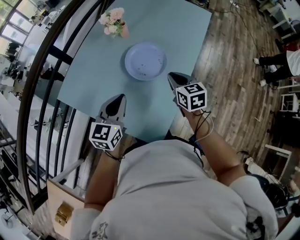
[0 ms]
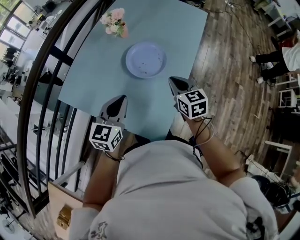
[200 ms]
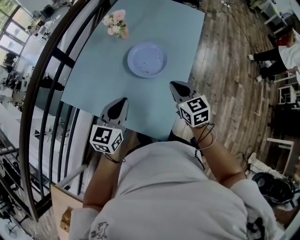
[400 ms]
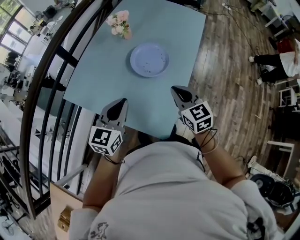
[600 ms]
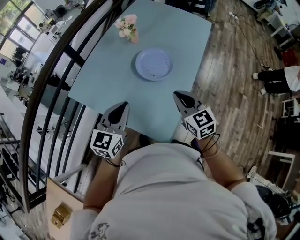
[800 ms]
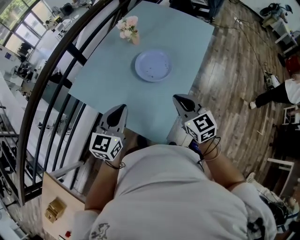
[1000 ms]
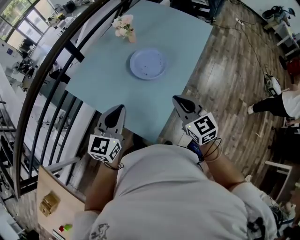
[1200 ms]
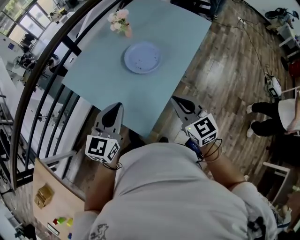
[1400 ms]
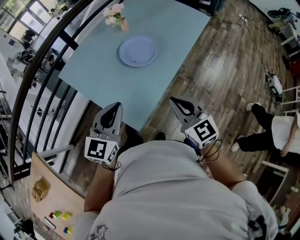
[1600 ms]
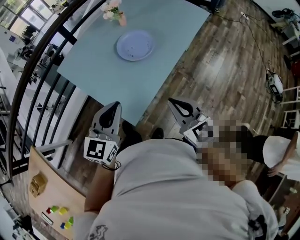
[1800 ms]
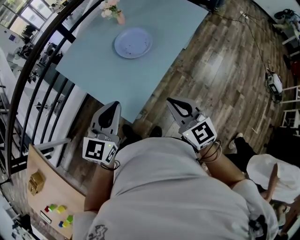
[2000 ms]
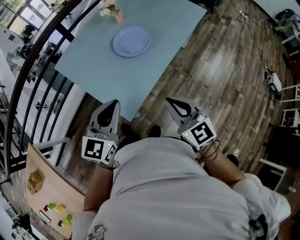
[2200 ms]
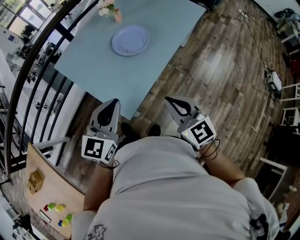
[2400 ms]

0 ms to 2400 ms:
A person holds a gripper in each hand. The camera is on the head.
0 ms to 1200 ms: Both grippers move backward and upward, approximately 15 cm. The right gripper turns by approximately 30 degrees.
1200 ms to 2400 ms: The grippers both shift backward and to the right by about 15 cm.

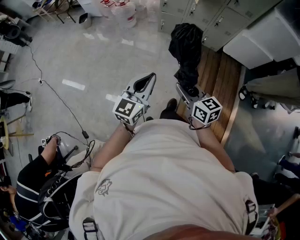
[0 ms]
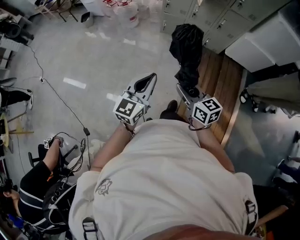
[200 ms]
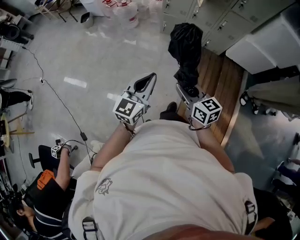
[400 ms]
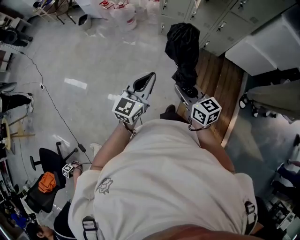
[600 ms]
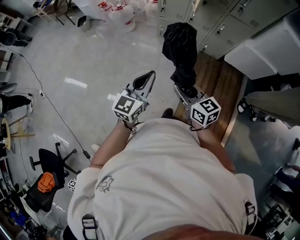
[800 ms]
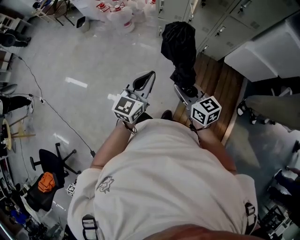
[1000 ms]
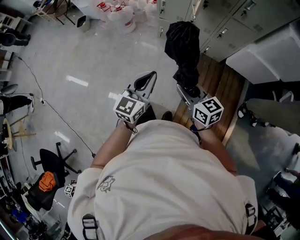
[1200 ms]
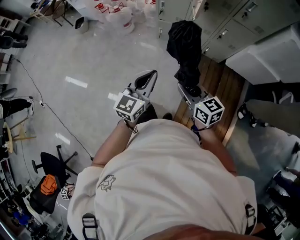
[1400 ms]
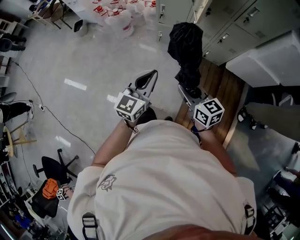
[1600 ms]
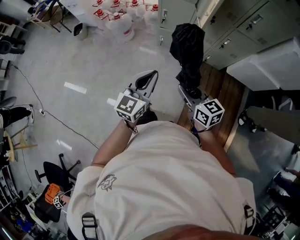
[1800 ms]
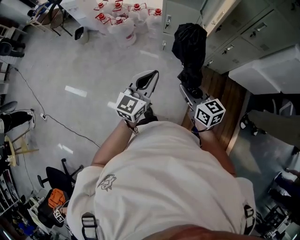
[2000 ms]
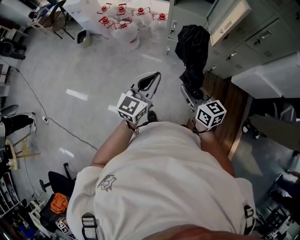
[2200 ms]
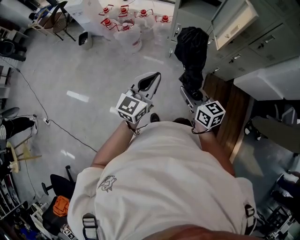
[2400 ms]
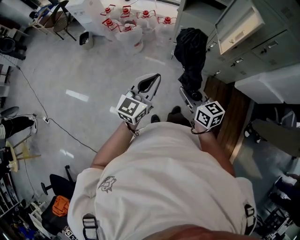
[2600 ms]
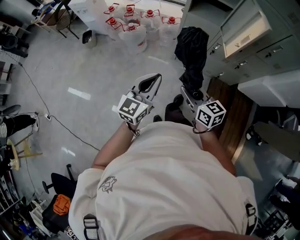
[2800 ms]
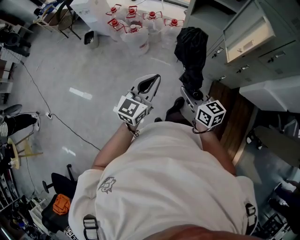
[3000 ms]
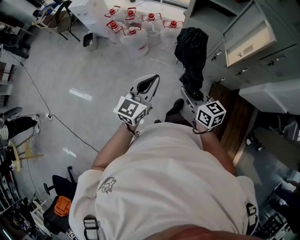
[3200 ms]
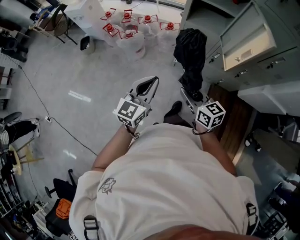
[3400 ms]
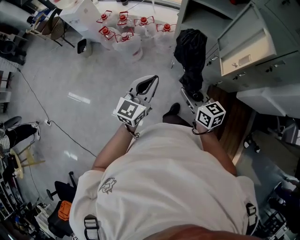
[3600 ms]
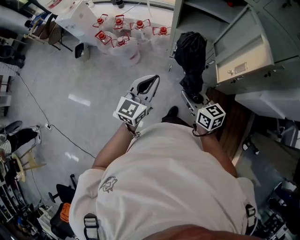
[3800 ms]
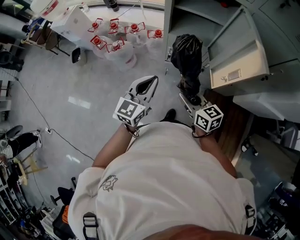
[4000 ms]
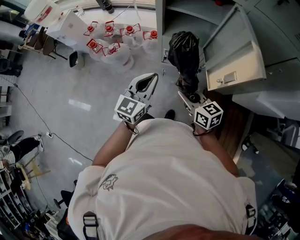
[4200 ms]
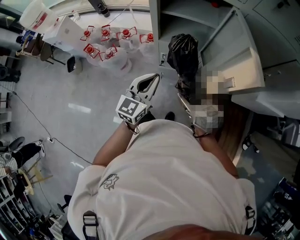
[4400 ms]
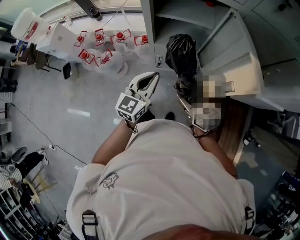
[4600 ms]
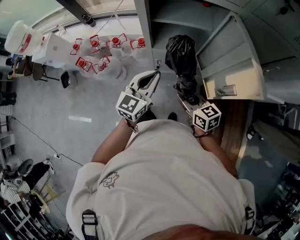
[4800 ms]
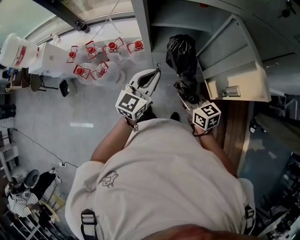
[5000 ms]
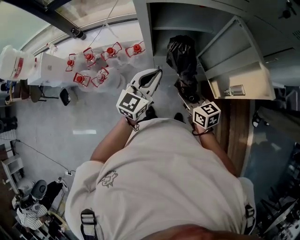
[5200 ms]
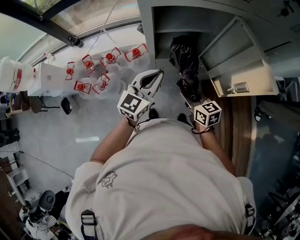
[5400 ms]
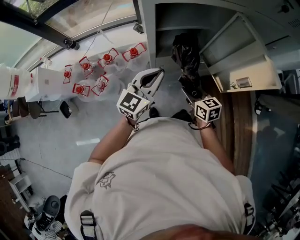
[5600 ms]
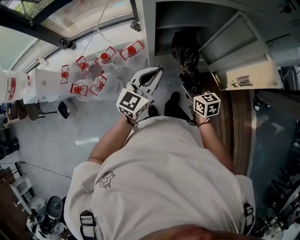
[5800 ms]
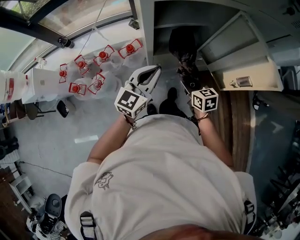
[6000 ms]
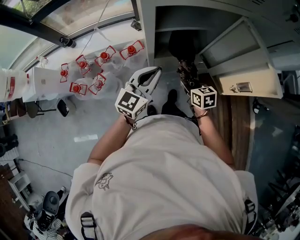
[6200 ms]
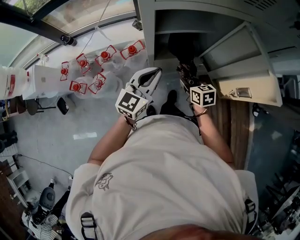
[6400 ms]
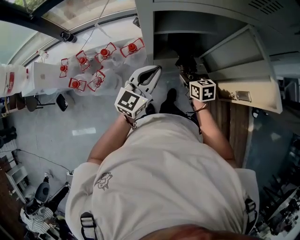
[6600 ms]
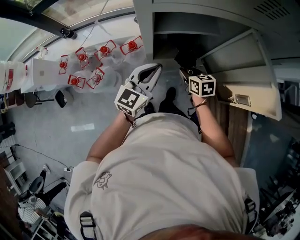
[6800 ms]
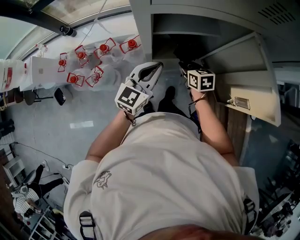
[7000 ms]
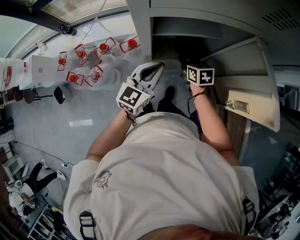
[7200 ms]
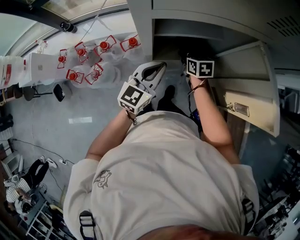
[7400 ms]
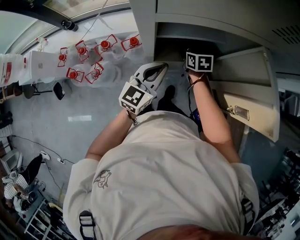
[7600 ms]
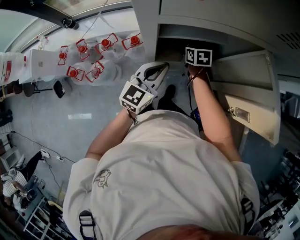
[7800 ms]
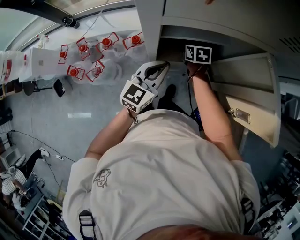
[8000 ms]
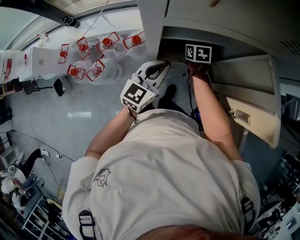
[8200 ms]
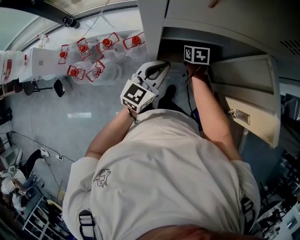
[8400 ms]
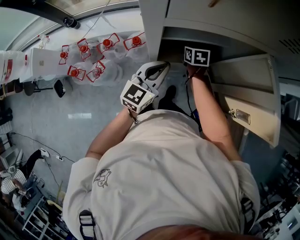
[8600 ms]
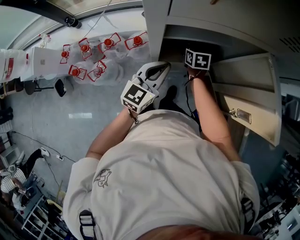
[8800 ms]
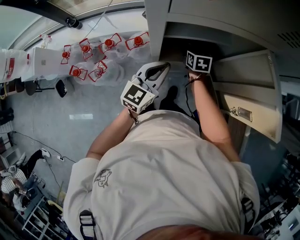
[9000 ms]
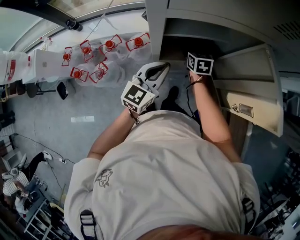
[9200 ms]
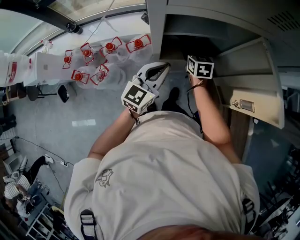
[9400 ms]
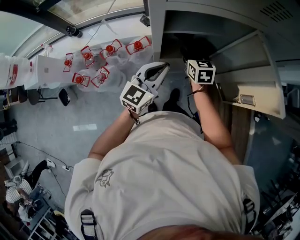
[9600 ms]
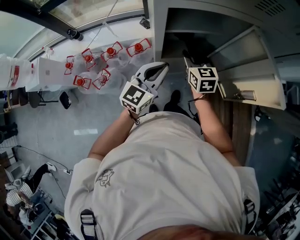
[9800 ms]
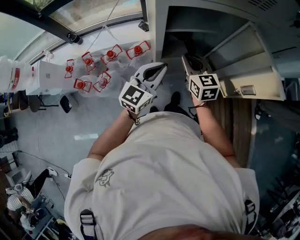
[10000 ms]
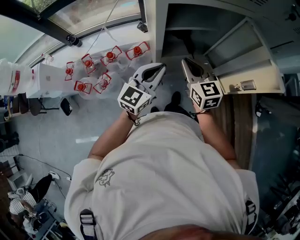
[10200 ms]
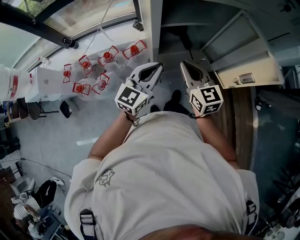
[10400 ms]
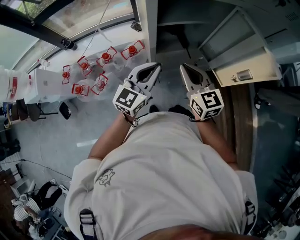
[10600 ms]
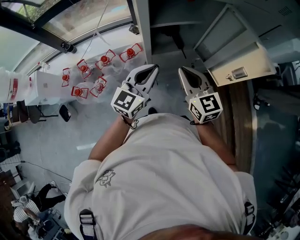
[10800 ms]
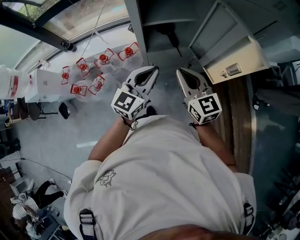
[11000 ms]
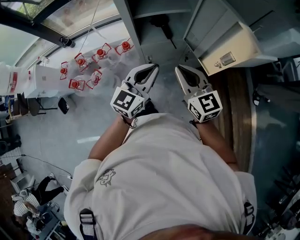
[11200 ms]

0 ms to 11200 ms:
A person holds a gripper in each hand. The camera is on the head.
0 ms to 1600 ms: The grippers both shift forward by some 30 cm.
1600 ms to 3200 ms: Both grippers travel together forward and to the left, roughly 35 cm.
3200 ms to 4800 ms: Both grippers travel together forward and to the right, approximately 35 cm.
4800 ms to 6400 ms: The right gripper moves forward and downward, about 15 cm, and swivels about 30 degrees. Meanwhile the left gripper is displaced forward and to the left by about 10 cm.
6400 ms to 8000 ms: The left gripper is displaced forward by about 5 cm, while the right gripper heads forward, covering about 20 cm.
8000 ms to 9600 ms: The left gripper ends up some 5 cm from where it was. Meanwhile the right gripper travels upward and backward by roughly 15 cm, swivels about 20 degrees, and opens up.
9600 ms to 11200 ms: The left gripper goes about 15 cm backward and to the right. Meanwhile the right gripper travels backward and upward by approximately 30 cm, rotates some 20 degrees, and closes up.

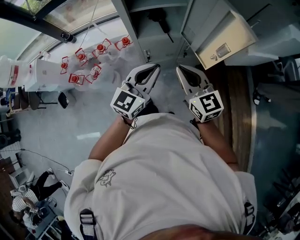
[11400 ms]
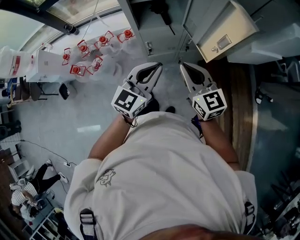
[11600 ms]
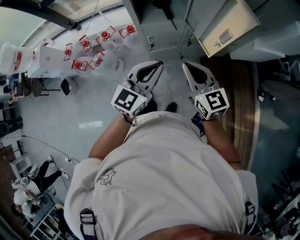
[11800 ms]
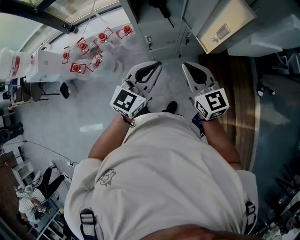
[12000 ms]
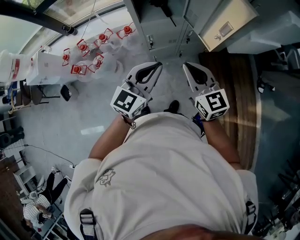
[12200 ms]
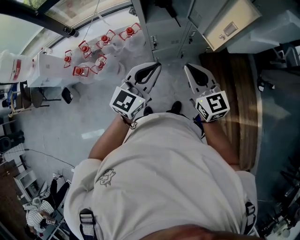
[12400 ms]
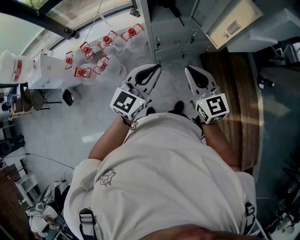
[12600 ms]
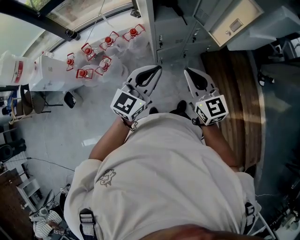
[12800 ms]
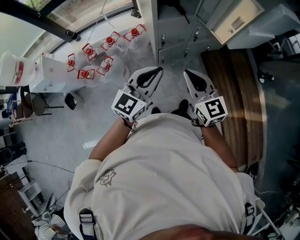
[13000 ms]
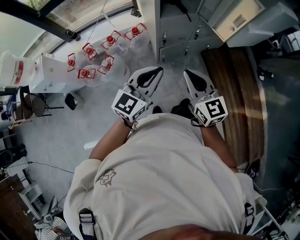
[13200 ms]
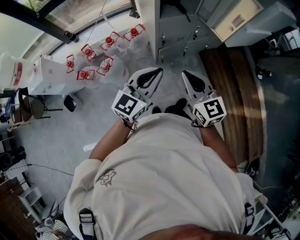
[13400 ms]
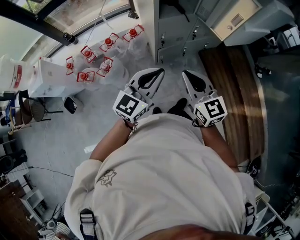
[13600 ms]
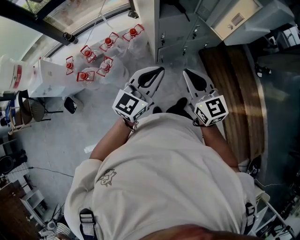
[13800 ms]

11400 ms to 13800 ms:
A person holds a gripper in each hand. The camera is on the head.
11400 ms to 12600 ms: The grippers both shift backward and to the left by roughly 15 cm.
12600 ms to 13800 ms: The two grippers go about 15 cm to the left and backward.

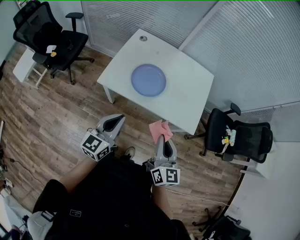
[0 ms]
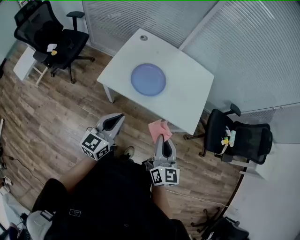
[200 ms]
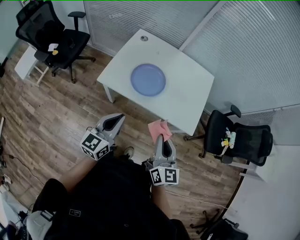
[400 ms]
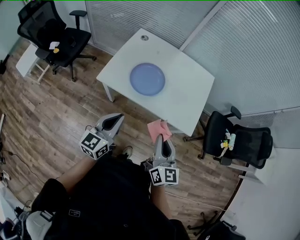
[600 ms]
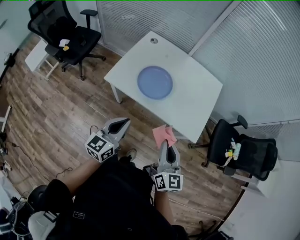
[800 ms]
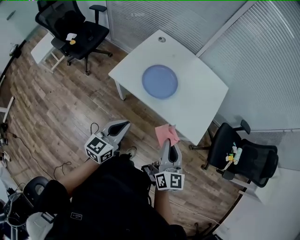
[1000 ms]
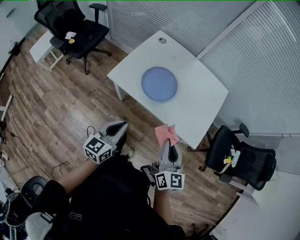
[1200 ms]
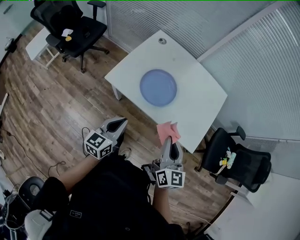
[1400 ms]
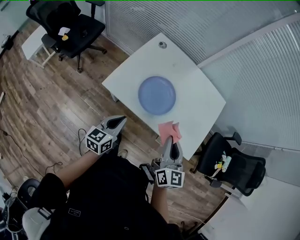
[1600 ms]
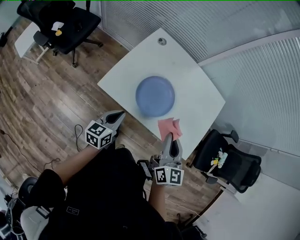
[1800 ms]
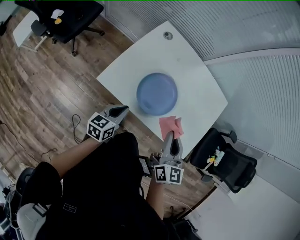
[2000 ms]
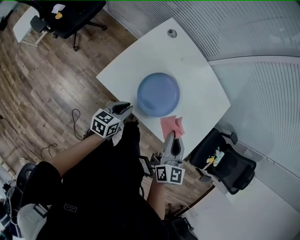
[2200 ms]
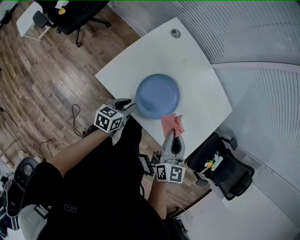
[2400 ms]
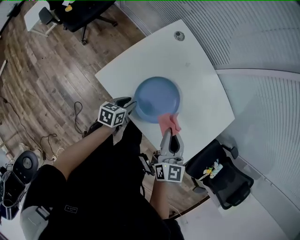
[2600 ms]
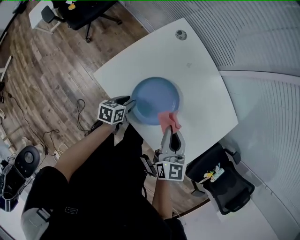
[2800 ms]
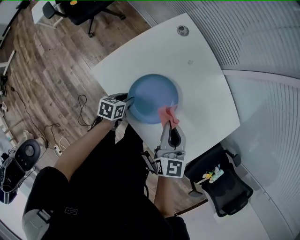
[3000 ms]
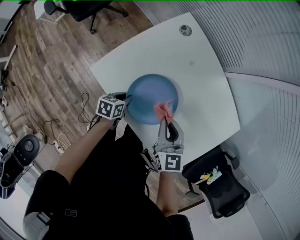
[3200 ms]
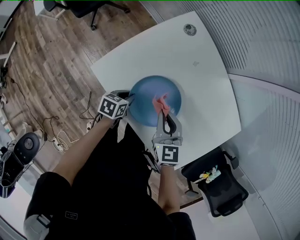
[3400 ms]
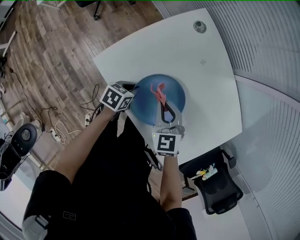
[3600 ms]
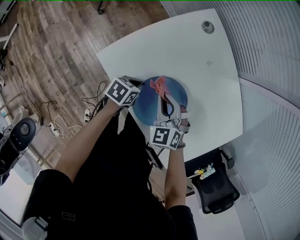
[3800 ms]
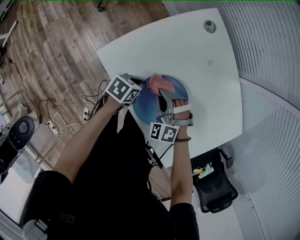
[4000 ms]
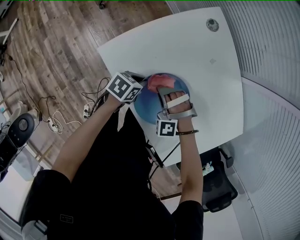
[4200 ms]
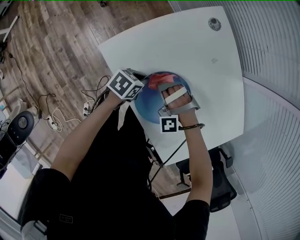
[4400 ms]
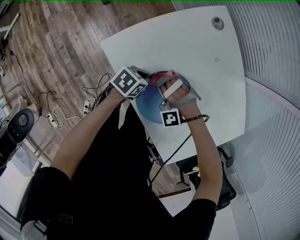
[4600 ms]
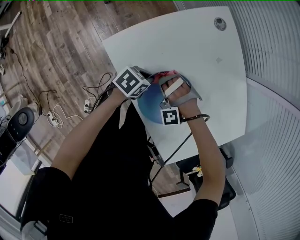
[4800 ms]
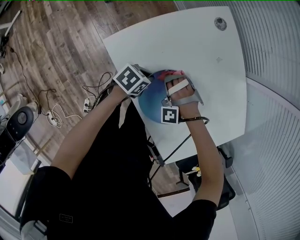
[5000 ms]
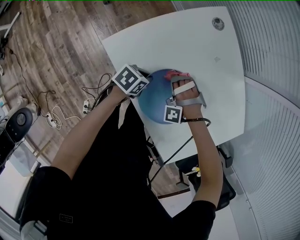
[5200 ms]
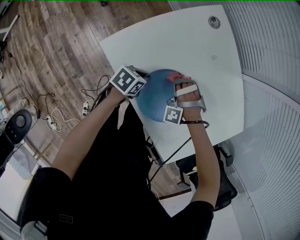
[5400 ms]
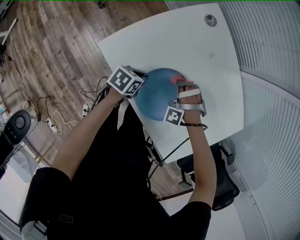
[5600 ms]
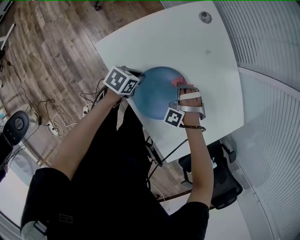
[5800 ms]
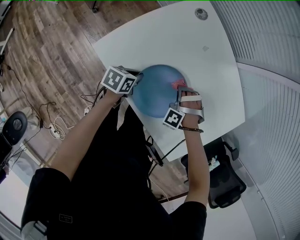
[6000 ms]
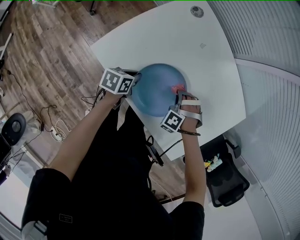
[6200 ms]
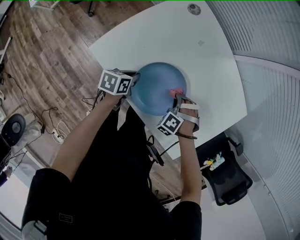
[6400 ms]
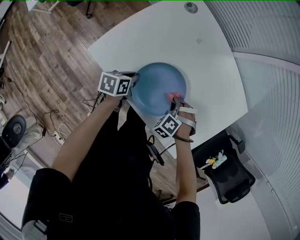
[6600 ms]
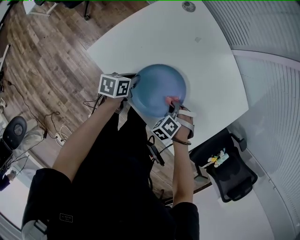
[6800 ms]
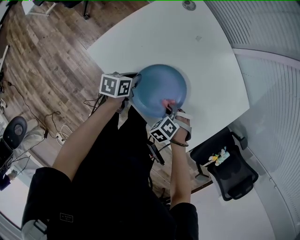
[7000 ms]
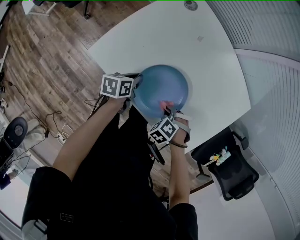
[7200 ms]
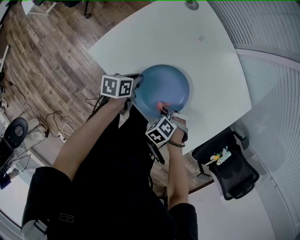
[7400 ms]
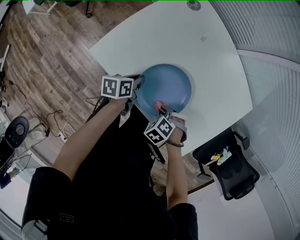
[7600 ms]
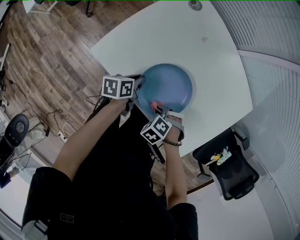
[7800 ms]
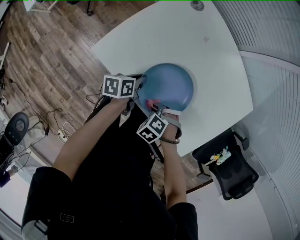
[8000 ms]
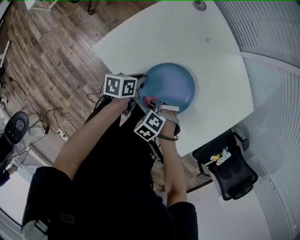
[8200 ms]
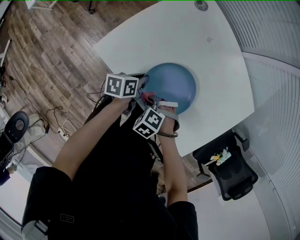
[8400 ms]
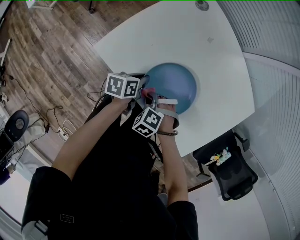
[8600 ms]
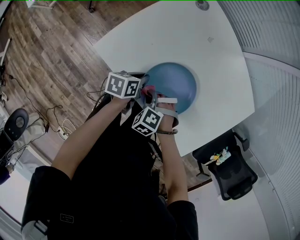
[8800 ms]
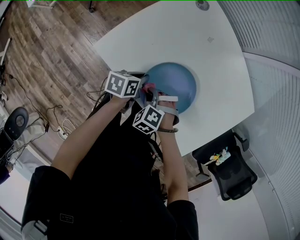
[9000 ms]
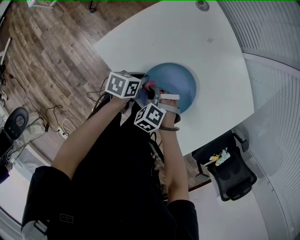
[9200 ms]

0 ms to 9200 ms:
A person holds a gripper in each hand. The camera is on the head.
0 ms to 1600 ms: The left gripper travels downward and forward by roughly 15 cm; the right gripper moves forward, some 15 cm.
1600 ms to 3000 ms: The right gripper is displaced forward and downward by roughly 25 cm, and swivels roughly 30 degrees. The left gripper heads downward and forward, covering roughly 25 cm, tilts its fingers about 30 degrees downward, and opens.
3000 ms to 4600 ms: The right gripper shifts about 25 cm downward and to the left, and twists about 120 degrees counterclockwise, seen from behind, while the left gripper closes its fingers.
4600 ms to 6200 ms: The right gripper shifts by some 15 cm, and swivels some 60 degrees.
6200 ms to 7600 ms: The right gripper changes place by some 15 cm, and swivels roughly 50 degrees.
7600 ms to 9200 ms: The right gripper moves approximately 10 cm, and swivels some 20 degrees.
